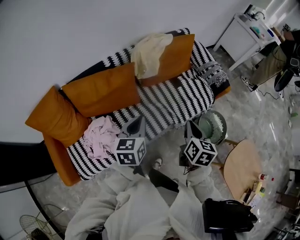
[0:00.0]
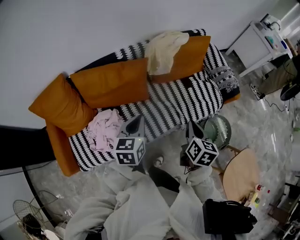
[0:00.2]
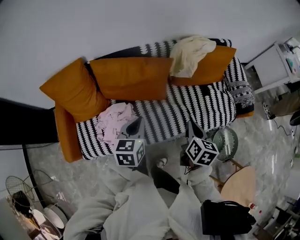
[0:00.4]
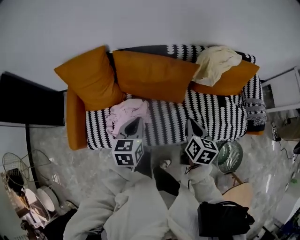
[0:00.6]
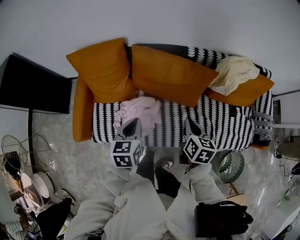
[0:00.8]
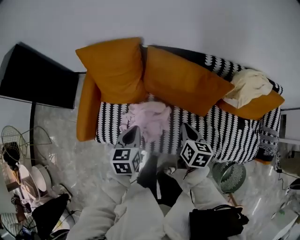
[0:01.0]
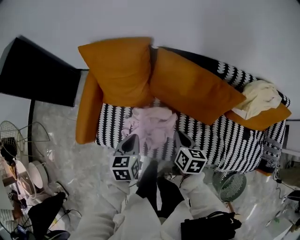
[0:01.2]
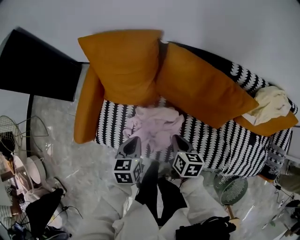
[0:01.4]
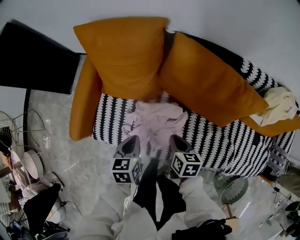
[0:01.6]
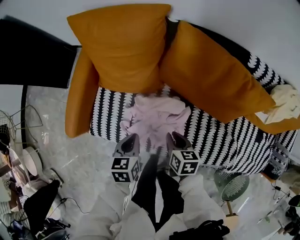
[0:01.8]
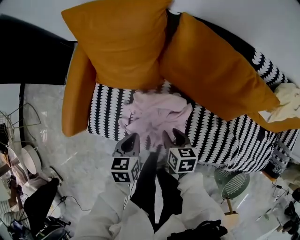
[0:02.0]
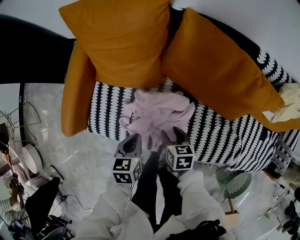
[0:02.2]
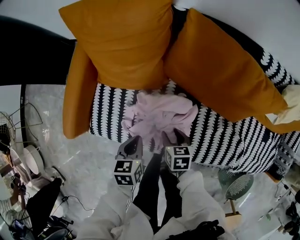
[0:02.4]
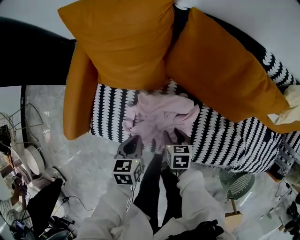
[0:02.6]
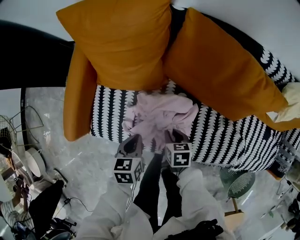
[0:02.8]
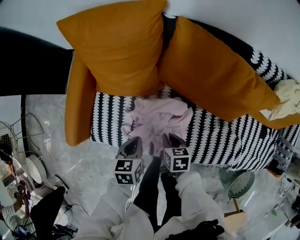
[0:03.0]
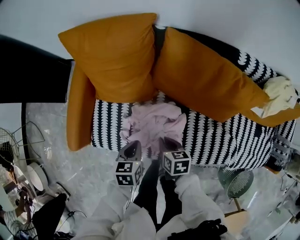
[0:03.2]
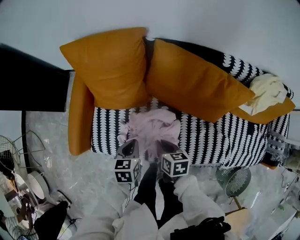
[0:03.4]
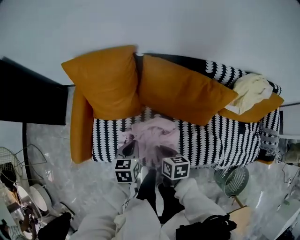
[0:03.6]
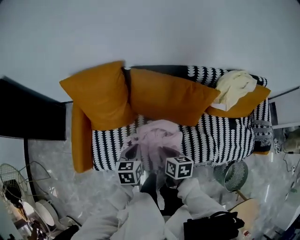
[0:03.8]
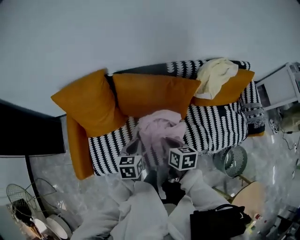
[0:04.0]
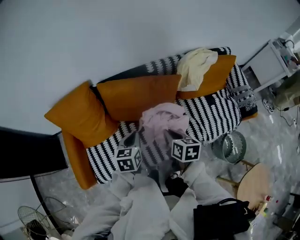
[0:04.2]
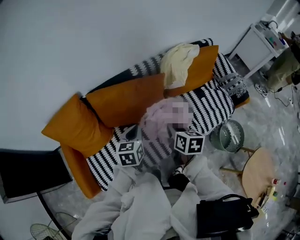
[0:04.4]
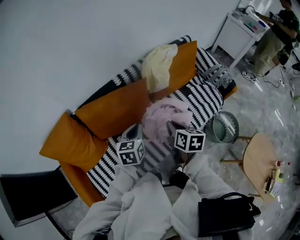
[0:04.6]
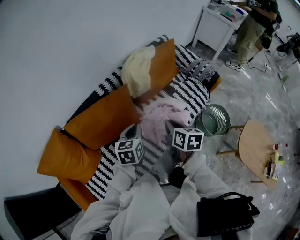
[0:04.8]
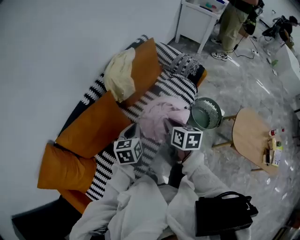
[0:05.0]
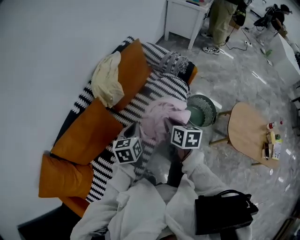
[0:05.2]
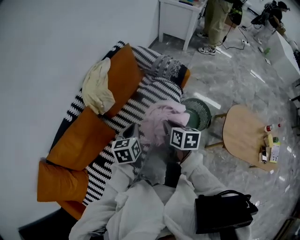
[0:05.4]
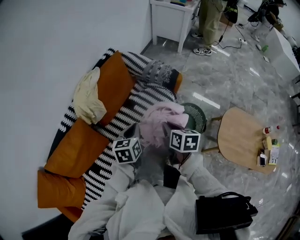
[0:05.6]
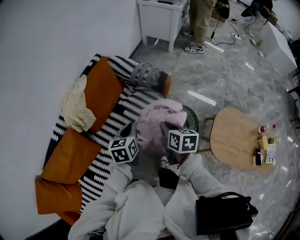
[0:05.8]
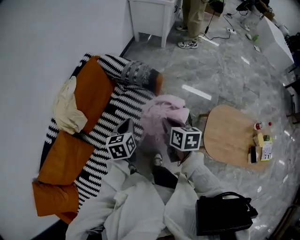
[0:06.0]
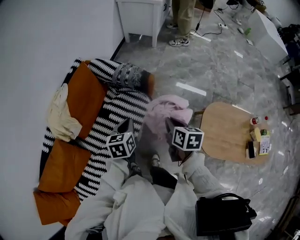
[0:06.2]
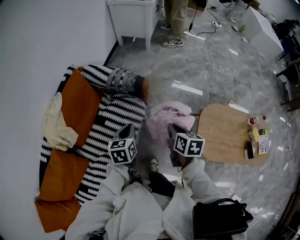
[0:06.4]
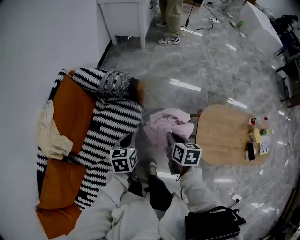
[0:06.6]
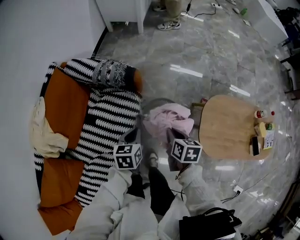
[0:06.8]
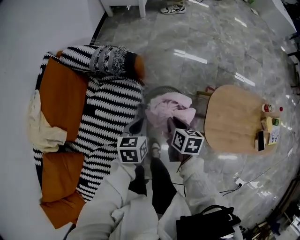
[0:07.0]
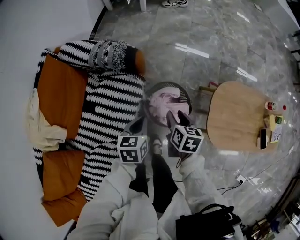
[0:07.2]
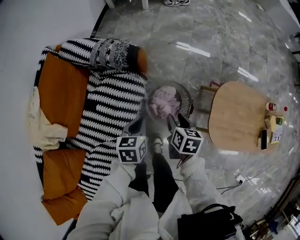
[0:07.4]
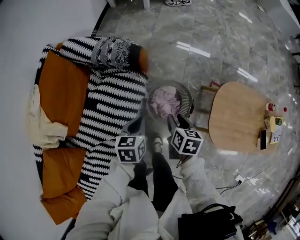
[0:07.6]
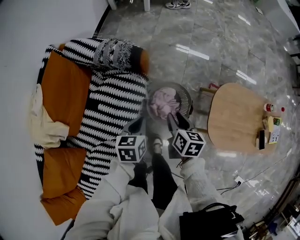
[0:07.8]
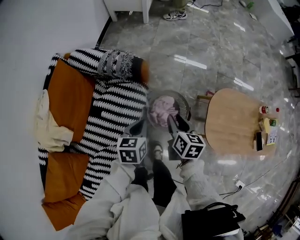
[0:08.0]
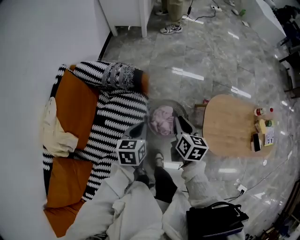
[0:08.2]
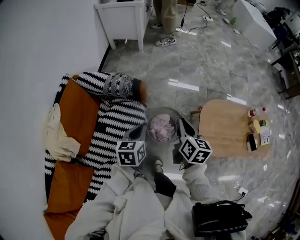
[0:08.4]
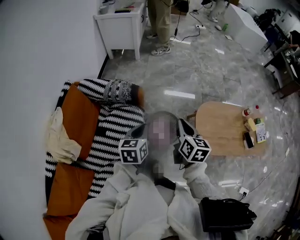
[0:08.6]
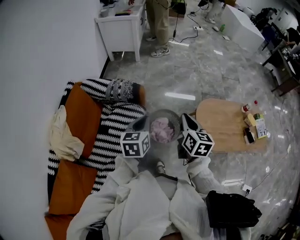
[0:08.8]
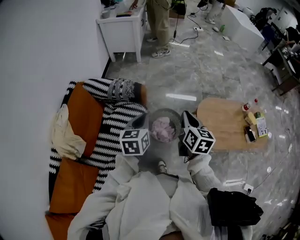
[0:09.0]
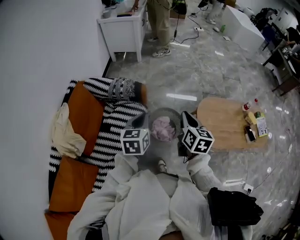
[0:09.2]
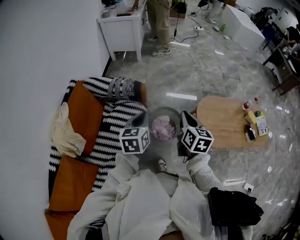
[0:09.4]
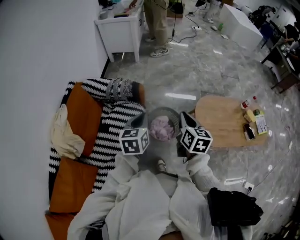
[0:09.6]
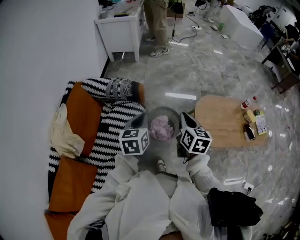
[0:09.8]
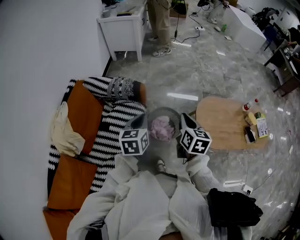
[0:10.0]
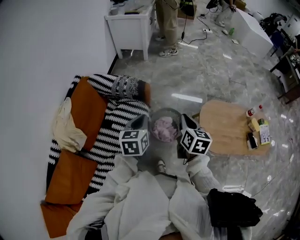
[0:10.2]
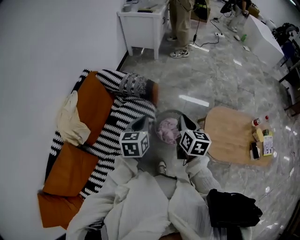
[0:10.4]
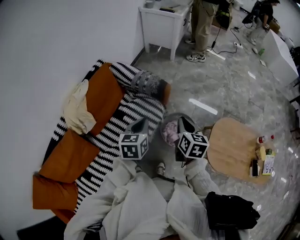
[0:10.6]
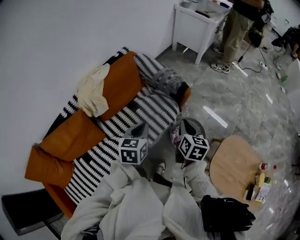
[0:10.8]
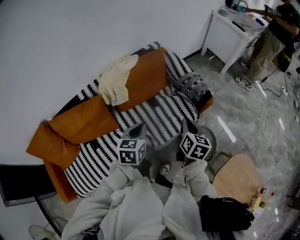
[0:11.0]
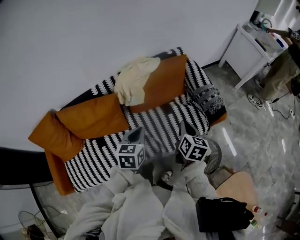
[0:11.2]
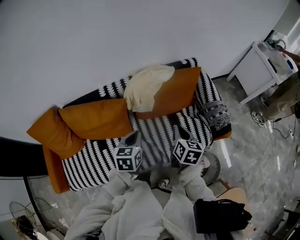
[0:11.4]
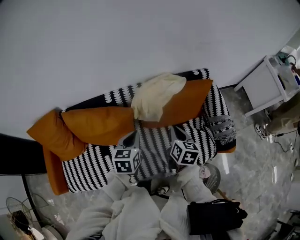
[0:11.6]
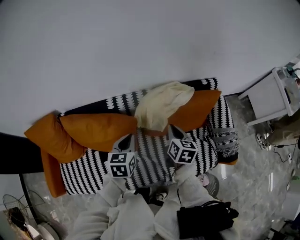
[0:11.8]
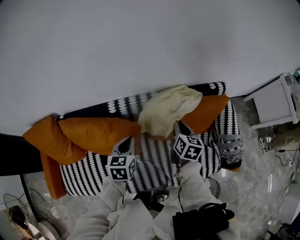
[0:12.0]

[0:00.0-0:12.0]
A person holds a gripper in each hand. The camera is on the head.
0:00.0 to 0:01.6: The pair of grippers is taken about 40 cm. The right gripper rotates approximately 60 degrees, while the left gripper turns by approximately 50 degrees.
0:01.6 to 0:03.0: The grippers both shift downward by roughly 5 cm. The right gripper opens, then closes again.
0:03.0 to 0:04.4: The right gripper travels upward by roughly 35 cm, and turns by roughly 50 degrees; the left gripper changes place by approximately 40 cm, and changes its angle by some 40 degrees.
0:04.4 to 0:06.0: Both grippers are carried some 60 cm. The right gripper rotates some 40 degrees; the left gripper changes its angle by roughly 30 degrees.
0:06.0 to 0:07.6: The left gripper moves downward, to the right and forward, some 25 cm, and turns by some 20 degrees. The right gripper moves downward and to the right, roughly 25 cm, turns by approximately 20 degrees, and opens its fingers.
0:07.6 to 0:09.0: Both grippers move upward, about 25 cm. The left gripper turns by roughly 20 degrees; the right gripper rotates about 30 degrees, and closes its fingers.
0:09.0 to 0:10.4: The grippers make only small movements.
0:10.4 to 0:12.0: Both grippers are carried approximately 60 cm. The left gripper rotates roughly 60 degrees. Meanwhile the right gripper turns by approximately 60 degrees.

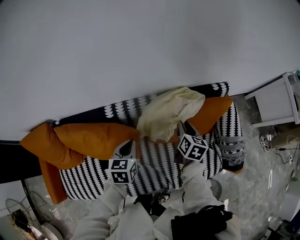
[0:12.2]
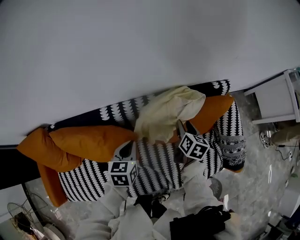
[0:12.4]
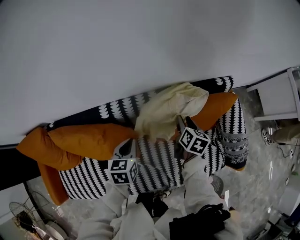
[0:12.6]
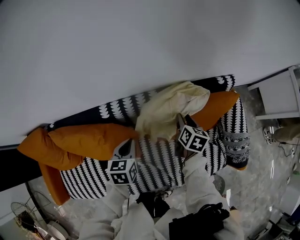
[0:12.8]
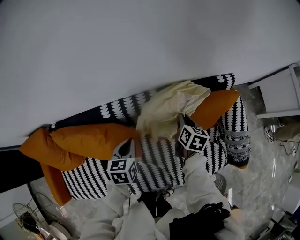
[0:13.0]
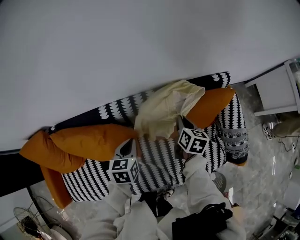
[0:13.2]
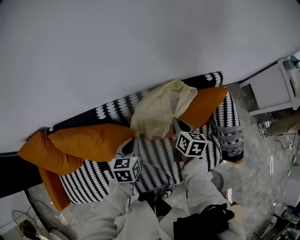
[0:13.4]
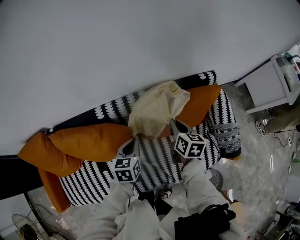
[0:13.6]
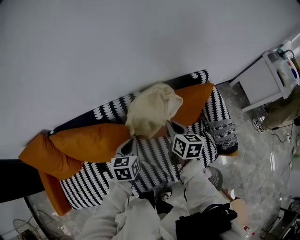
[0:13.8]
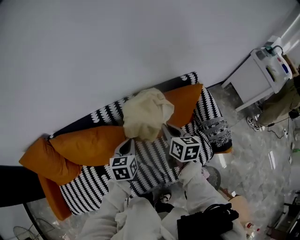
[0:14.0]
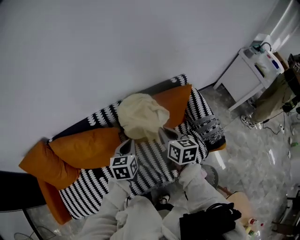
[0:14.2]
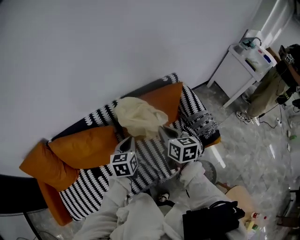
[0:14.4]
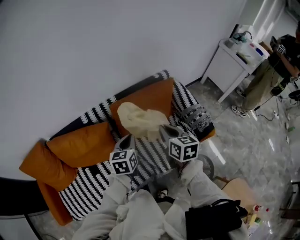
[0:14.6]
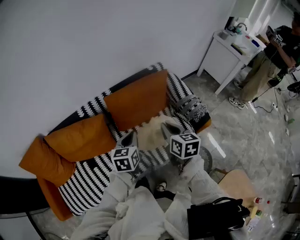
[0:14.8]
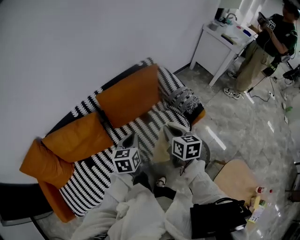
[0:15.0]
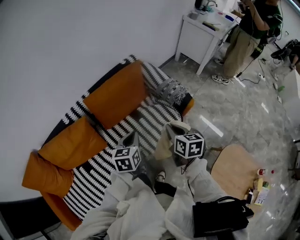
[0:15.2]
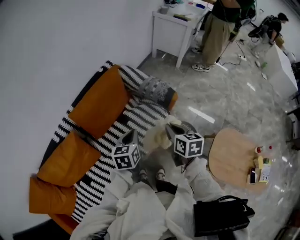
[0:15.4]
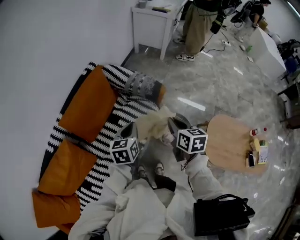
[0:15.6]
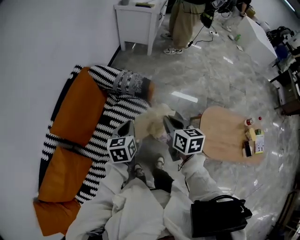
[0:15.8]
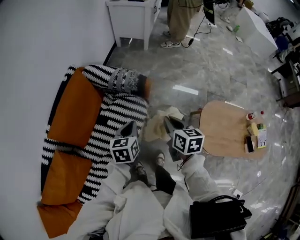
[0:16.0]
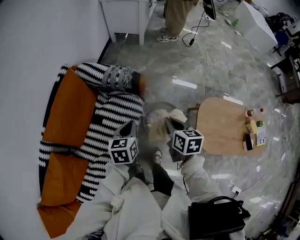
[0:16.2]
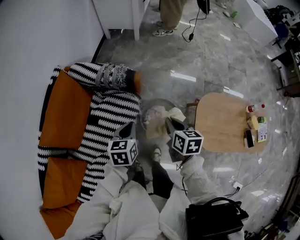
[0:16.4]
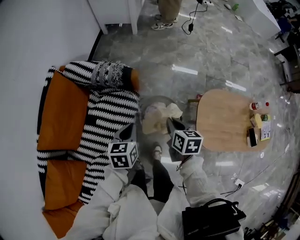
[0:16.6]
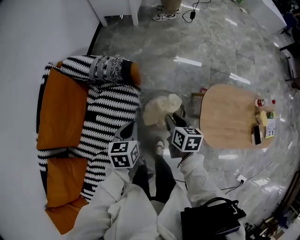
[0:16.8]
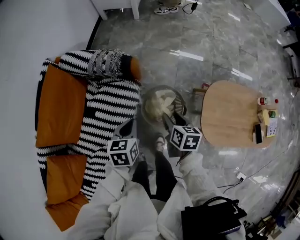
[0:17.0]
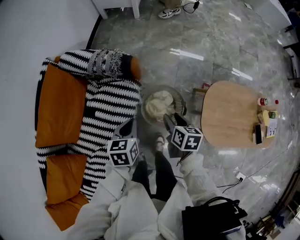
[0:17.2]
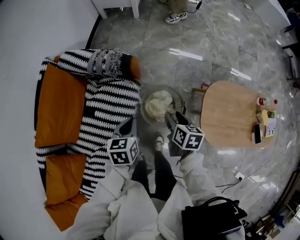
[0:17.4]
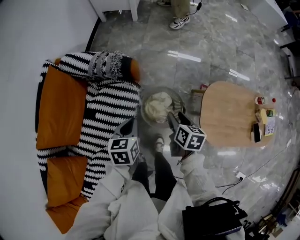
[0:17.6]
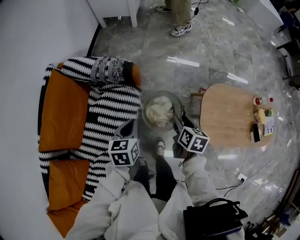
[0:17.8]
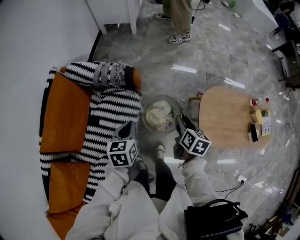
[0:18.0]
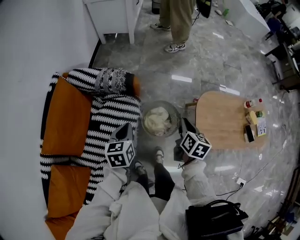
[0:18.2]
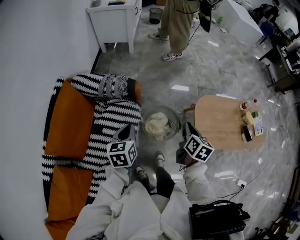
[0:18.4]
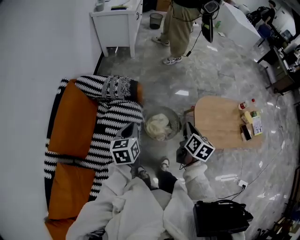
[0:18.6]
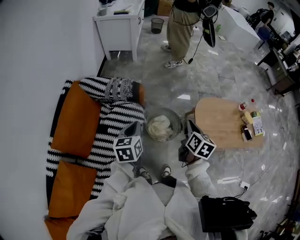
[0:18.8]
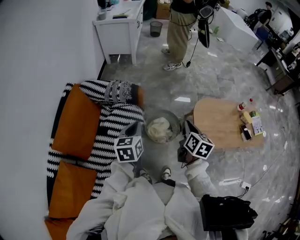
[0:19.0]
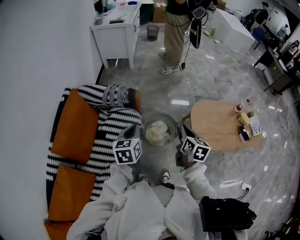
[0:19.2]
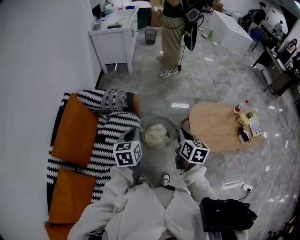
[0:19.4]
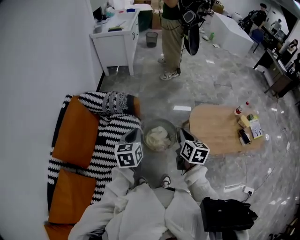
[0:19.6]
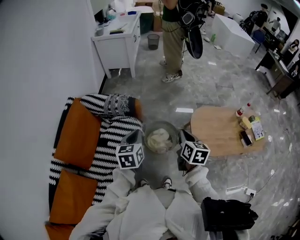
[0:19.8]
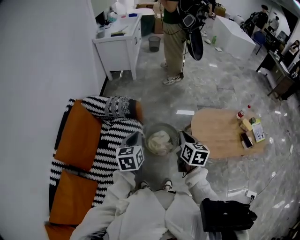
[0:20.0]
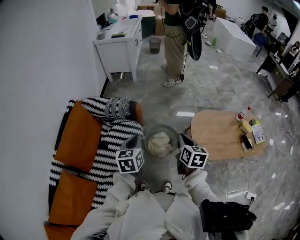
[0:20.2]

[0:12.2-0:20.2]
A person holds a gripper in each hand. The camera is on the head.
0:12.2 to 0:13.8: The right gripper moves upward and backward, about 10 cm. Meanwhile the left gripper shifts by about 5 cm.
0:13.8 to 0:15.4: The right gripper moves about 50 cm, and turns by roughly 30 degrees. The left gripper ends up approximately 40 cm from where it was, and turns by some 40 degrees.
0:15.4 to 0:17.0: The right gripper changes place by approximately 30 cm, rotates approximately 40 degrees, and opens up, while the left gripper changes place by approximately 25 cm, and changes its angle by some 30 degrees.
0:17.0 to 0:18.6: The right gripper heads upward and backward, covering approximately 20 cm, turns by some 30 degrees, and closes. Meanwhile the left gripper is displaced upward, backward and to the left by about 15 cm.
0:18.6 to 0:20.2: The left gripper shifts roughly 5 cm to the right.

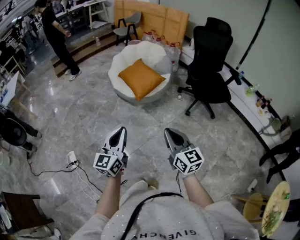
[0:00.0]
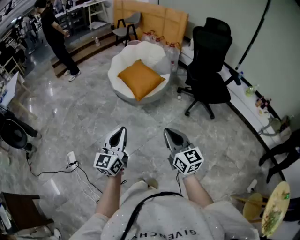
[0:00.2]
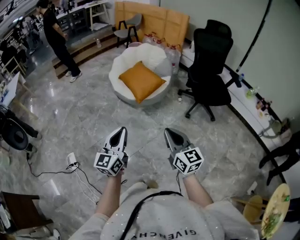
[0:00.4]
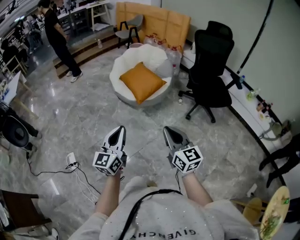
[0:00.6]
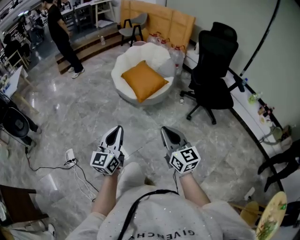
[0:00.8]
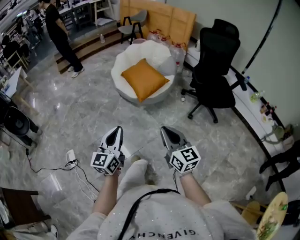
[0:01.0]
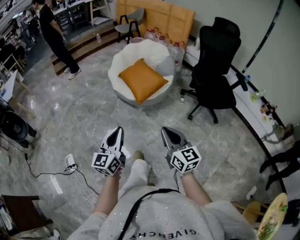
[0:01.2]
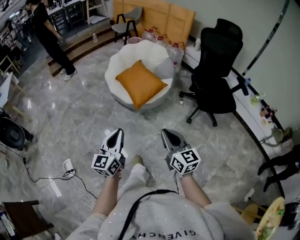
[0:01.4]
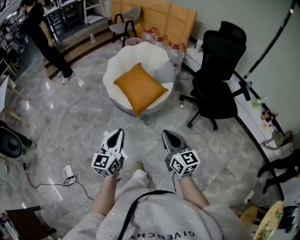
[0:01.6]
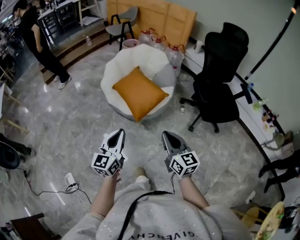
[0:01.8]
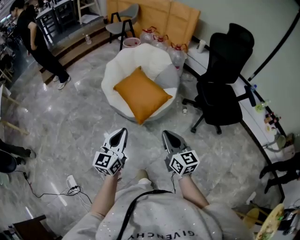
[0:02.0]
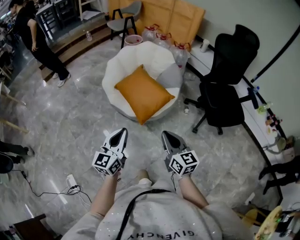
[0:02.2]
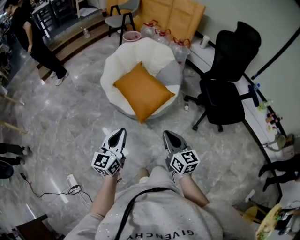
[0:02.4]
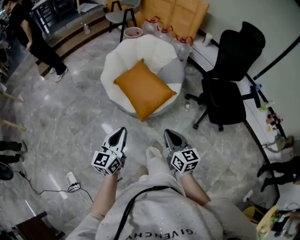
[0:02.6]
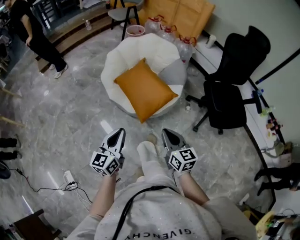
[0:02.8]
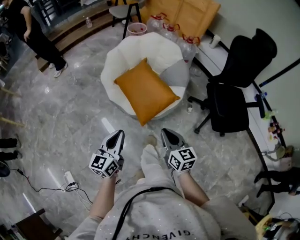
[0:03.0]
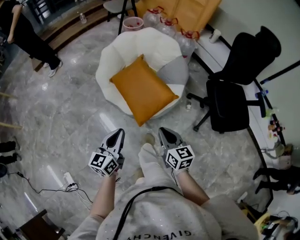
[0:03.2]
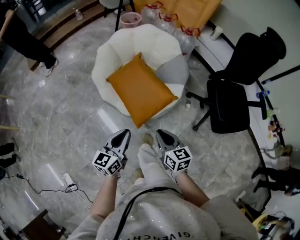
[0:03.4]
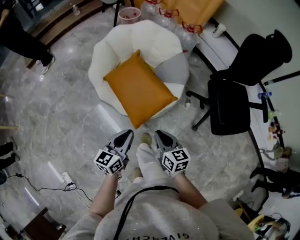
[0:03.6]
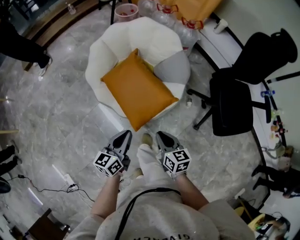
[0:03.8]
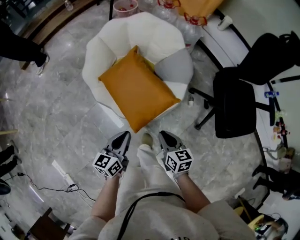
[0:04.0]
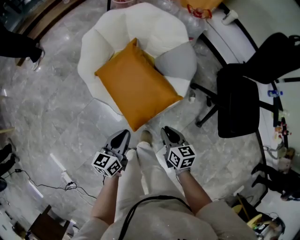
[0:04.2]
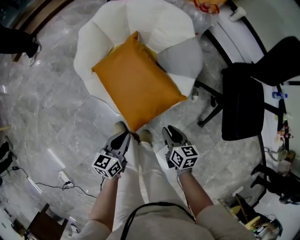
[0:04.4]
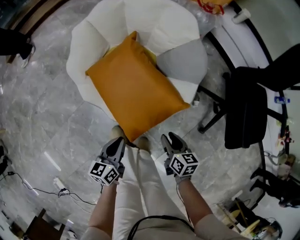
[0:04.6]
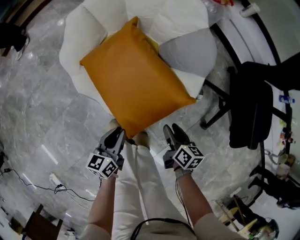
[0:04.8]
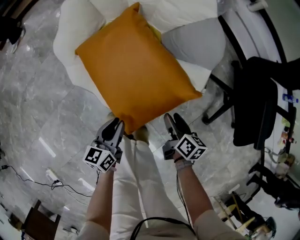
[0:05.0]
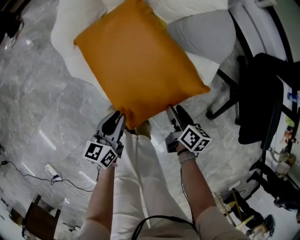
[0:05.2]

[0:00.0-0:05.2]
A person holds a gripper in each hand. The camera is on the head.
0:00.0 to 0:01.8: The two grippers go about 30 cm forward.
0:01.8 to 0:03.4: Both grippers move forward and downward, some 25 cm. The right gripper turns by approximately 20 degrees.
0:03.4 to 0:05.2: The left gripper travels downward by about 35 cm, while the right gripper heads downward and forward, covering about 40 cm, turns by roughly 40 degrees, and opens up.
